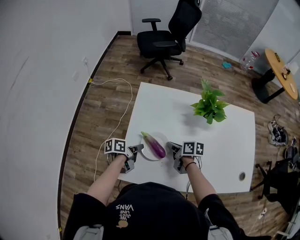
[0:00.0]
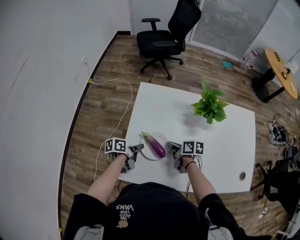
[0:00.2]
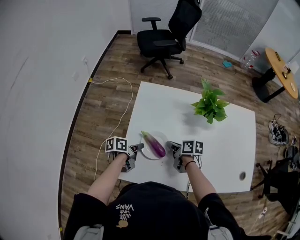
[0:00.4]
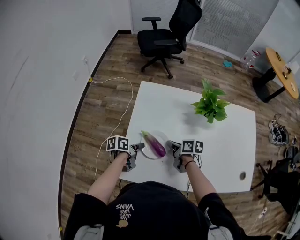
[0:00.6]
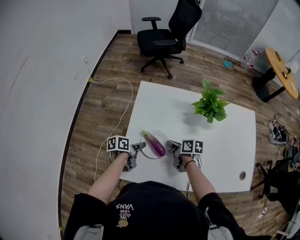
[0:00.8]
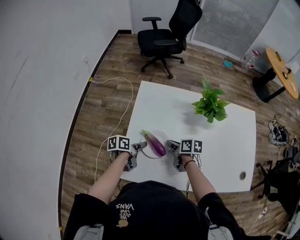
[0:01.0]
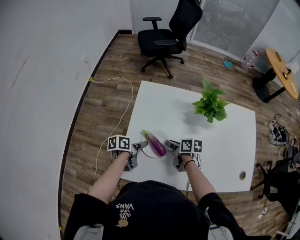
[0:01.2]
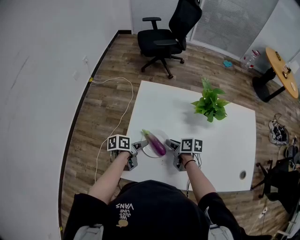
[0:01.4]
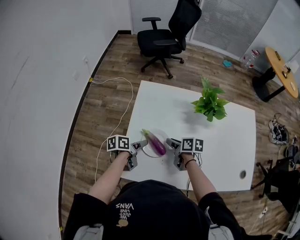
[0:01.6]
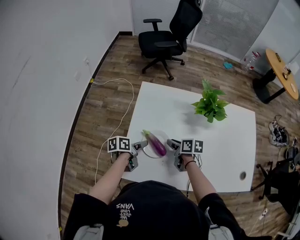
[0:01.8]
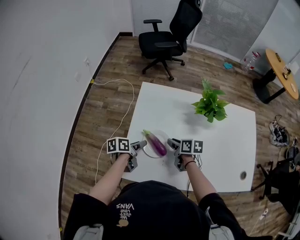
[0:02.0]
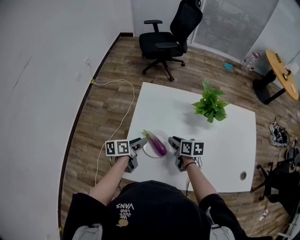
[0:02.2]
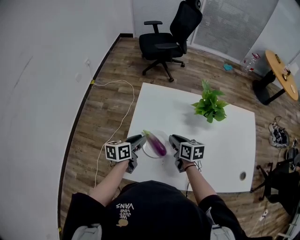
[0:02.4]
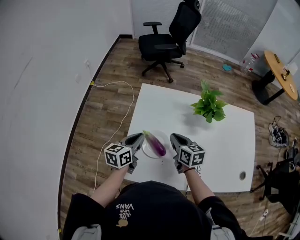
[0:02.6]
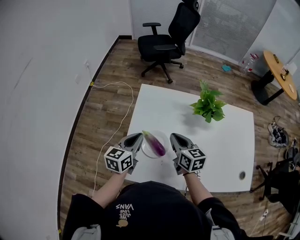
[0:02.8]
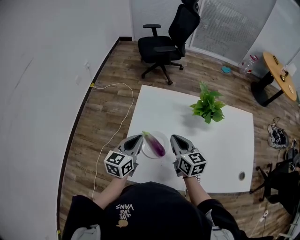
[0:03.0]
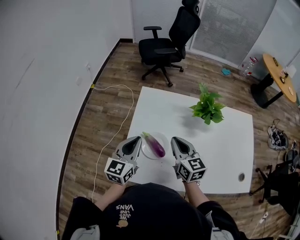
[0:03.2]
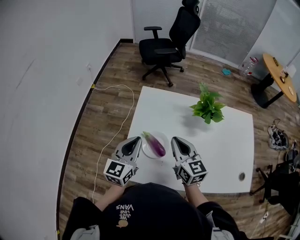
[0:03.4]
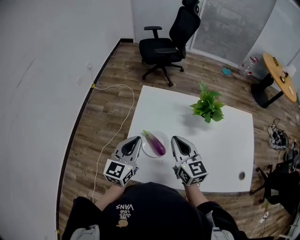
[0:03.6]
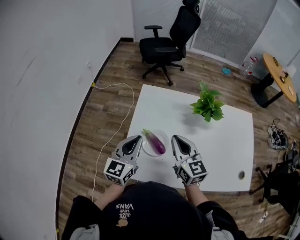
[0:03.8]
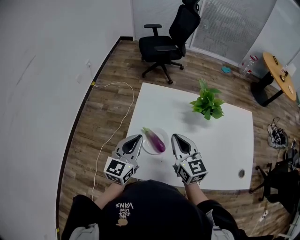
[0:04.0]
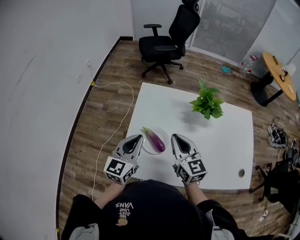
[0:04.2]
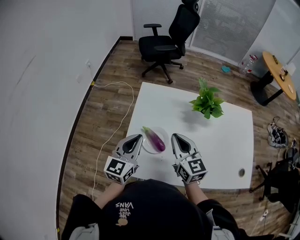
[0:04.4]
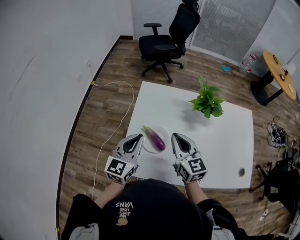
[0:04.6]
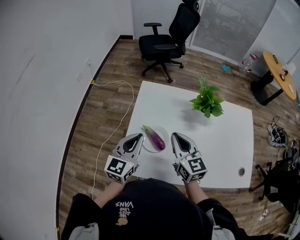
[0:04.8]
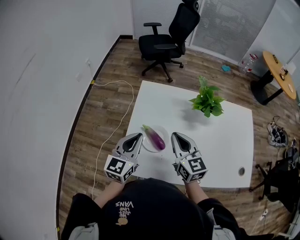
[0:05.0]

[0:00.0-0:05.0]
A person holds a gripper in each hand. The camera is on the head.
0:00.0 to 0:01.6: The left gripper opens its fingers.
0:01.6 to 0:03.4: Both grippers move upward, about 20 cm. The right gripper changes its angle by roughly 50 degrees, and closes. The left gripper twists about 60 degrees clockwise, seen from behind, and closes.
0:03.4 to 0:05.0: The grippers stay close to where they were, moving slightly.

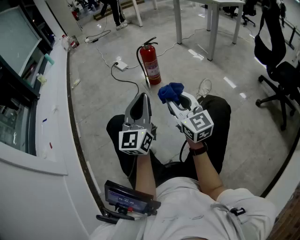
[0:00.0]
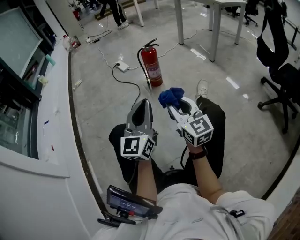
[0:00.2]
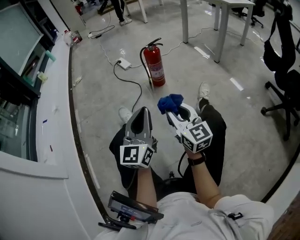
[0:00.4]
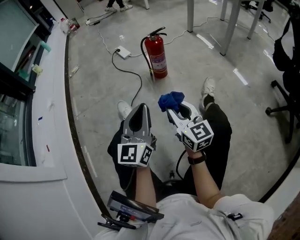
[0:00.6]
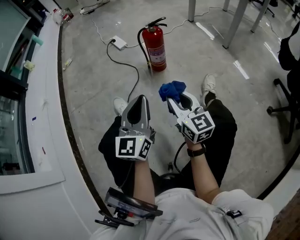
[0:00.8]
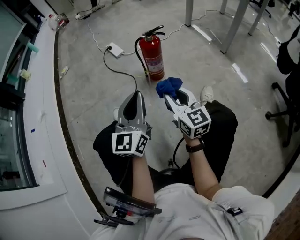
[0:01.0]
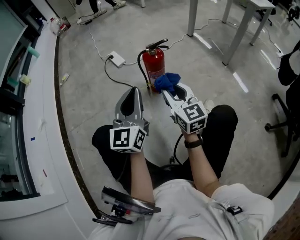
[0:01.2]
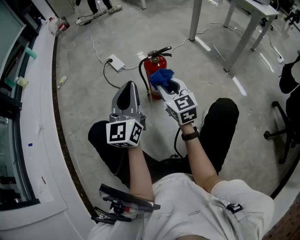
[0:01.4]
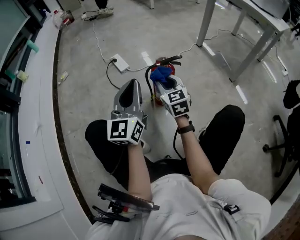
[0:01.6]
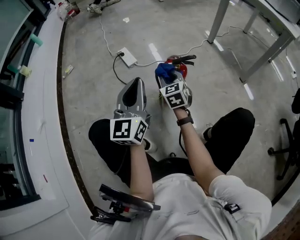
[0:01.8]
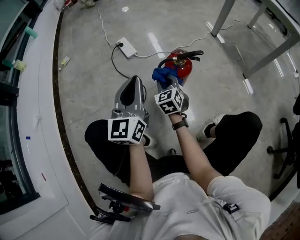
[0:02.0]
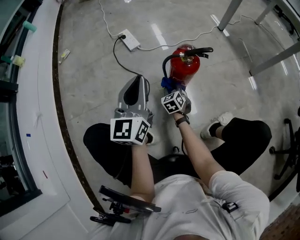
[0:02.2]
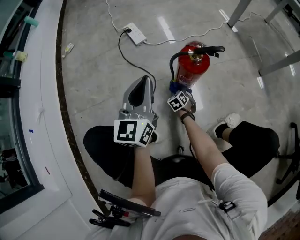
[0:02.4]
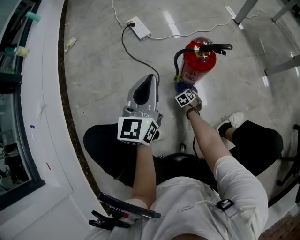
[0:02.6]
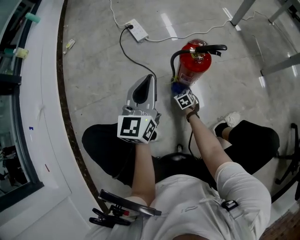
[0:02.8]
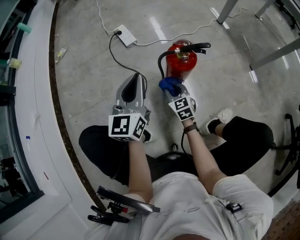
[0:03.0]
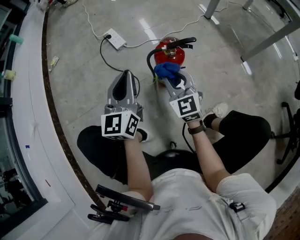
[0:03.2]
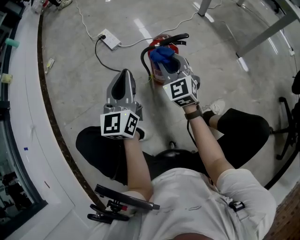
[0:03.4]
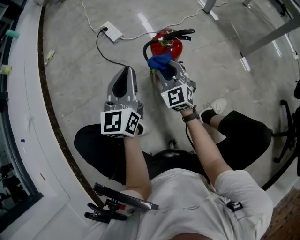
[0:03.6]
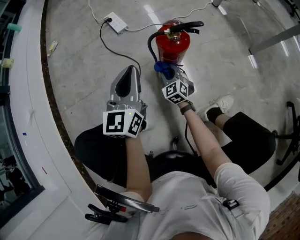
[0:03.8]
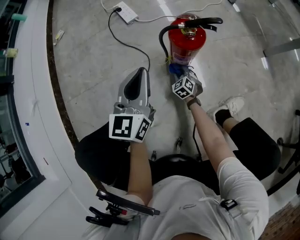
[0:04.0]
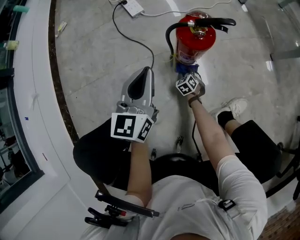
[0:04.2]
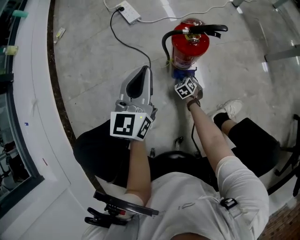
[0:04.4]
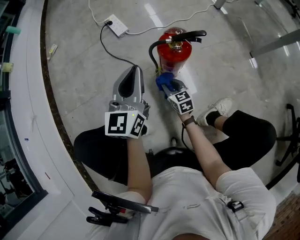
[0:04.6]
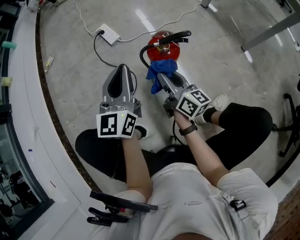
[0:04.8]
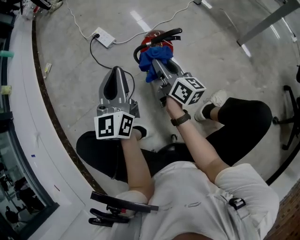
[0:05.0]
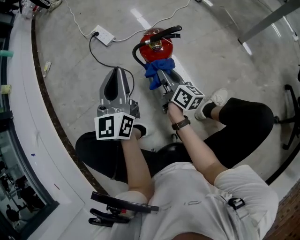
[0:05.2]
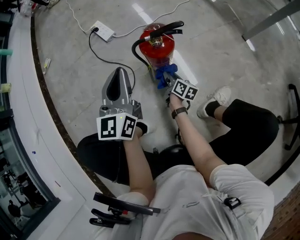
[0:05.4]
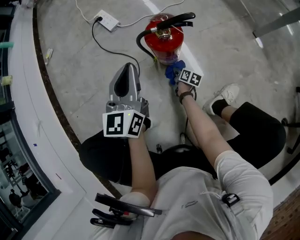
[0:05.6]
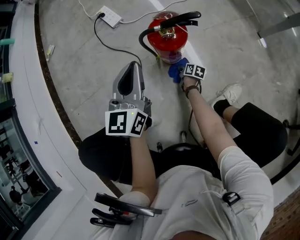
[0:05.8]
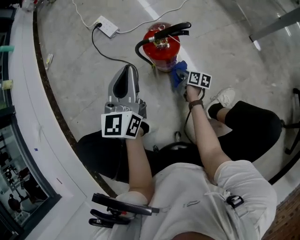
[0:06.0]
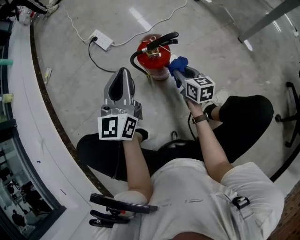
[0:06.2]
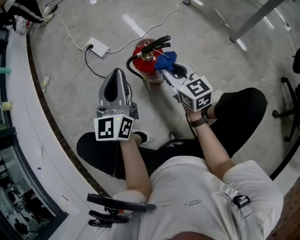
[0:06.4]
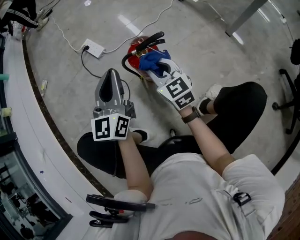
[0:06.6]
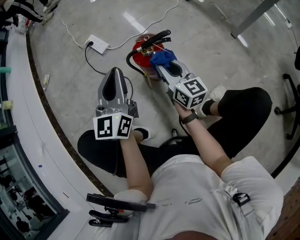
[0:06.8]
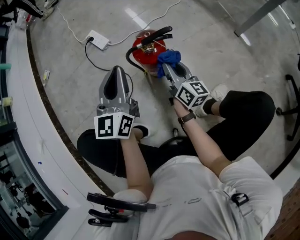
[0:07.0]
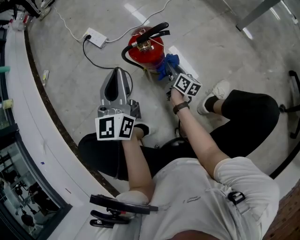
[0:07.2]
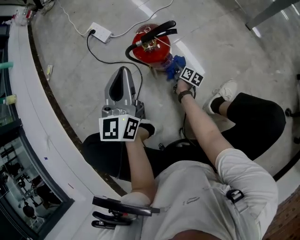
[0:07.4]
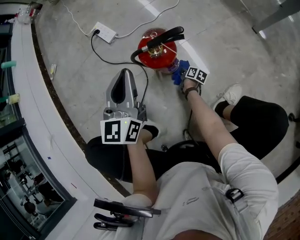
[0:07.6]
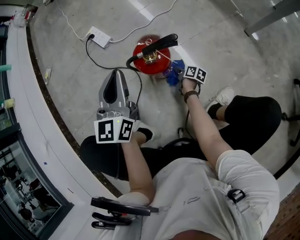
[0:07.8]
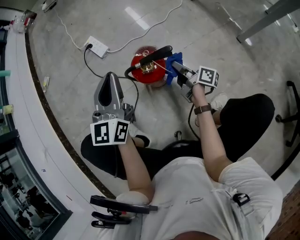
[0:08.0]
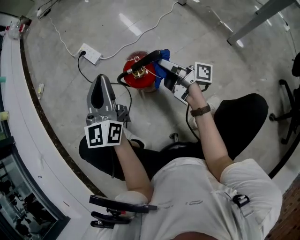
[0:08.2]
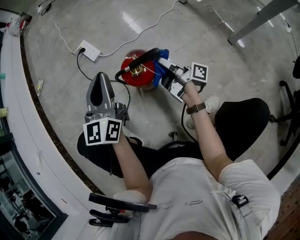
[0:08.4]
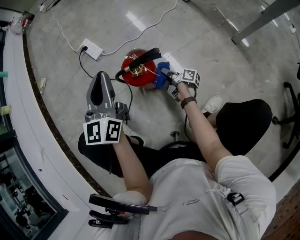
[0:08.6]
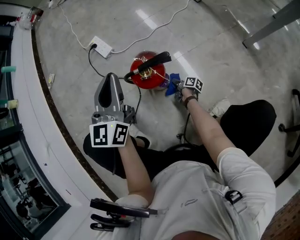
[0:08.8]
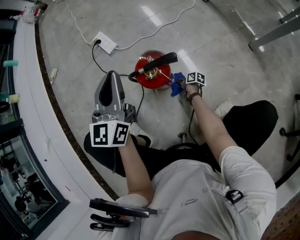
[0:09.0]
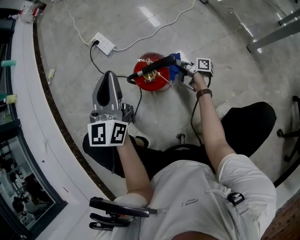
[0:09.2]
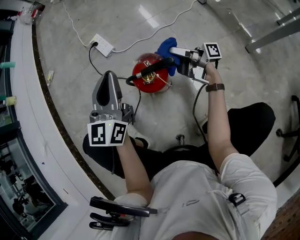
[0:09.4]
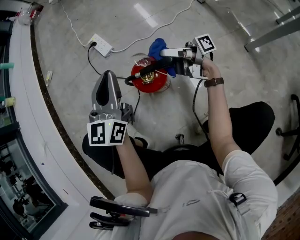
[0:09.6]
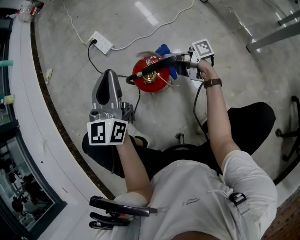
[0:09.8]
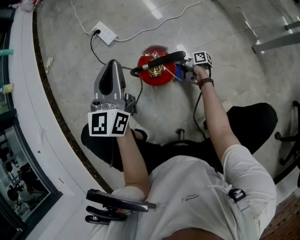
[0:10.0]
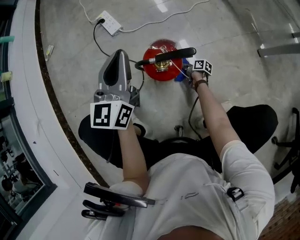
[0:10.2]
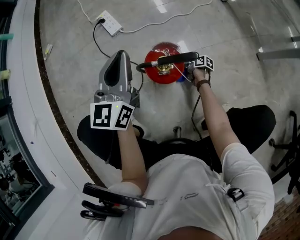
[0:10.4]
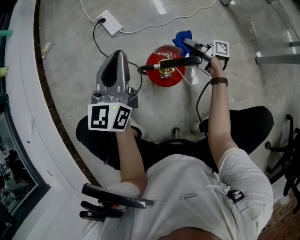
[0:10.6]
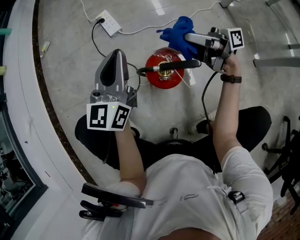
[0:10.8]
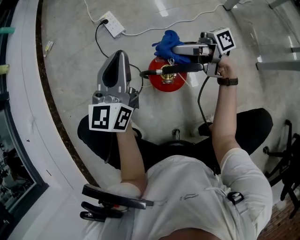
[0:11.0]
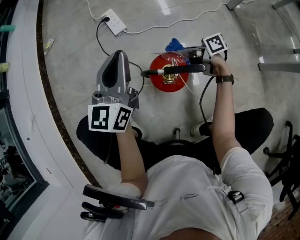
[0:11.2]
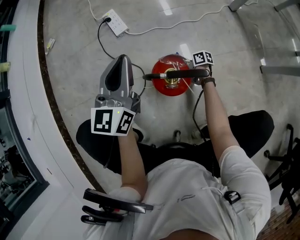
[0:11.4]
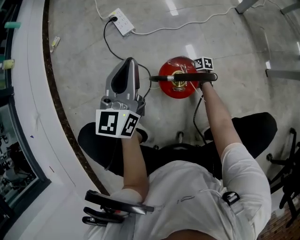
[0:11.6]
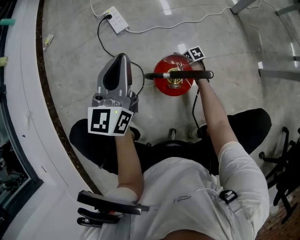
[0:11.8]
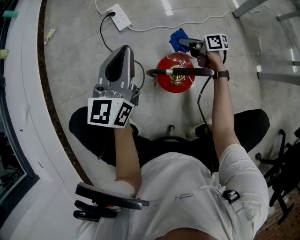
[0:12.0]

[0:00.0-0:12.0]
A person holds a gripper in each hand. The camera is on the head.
0:00.0 to 0:01.6: Both grippers are carried forward, approximately 50 cm. The right gripper changes its angle by approximately 20 degrees.
0:01.6 to 0:03.0: The right gripper goes roughly 20 cm downward. The left gripper is displaced downward and forward by about 15 cm.
0:03.0 to 0:04.4: The right gripper goes roughly 25 cm downward, and rotates roughly 30 degrees. Meanwhile the left gripper ends up approximately 5 cm from where it was.
0:04.4 to 0:06.0: The right gripper swings up and down, approximately 50 cm each way, with 2 reversals, and rolls clockwise, seen from behind, by about 70 degrees. The left gripper moves some 5 cm upward and comes back.
0:06.0 to 0:07.6: The right gripper moves roughly 30 cm upward and comes back, and changes its angle by some 20 degrees.
0:07.6 to 0:09.0: The left gripper moves upward, some 5 cm. Meanwhile the right gripper travels upward and back again, roughly 40 cm each way, and rotates approximately 20 degrees.
0:09.0 to 0:10.4: The right gripper heads forward, covering some 5 cm, and goes upward and returns, about 40 cm each way.
0:10.4 to 0:12.0: The right gripper goes up and down, about 50 cm each way, reversing 2 times, and changes its angle by some 40 degrees.

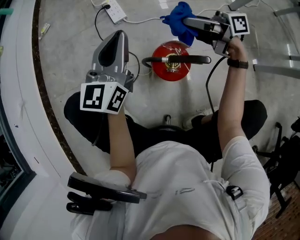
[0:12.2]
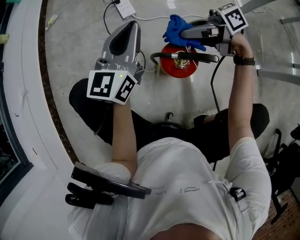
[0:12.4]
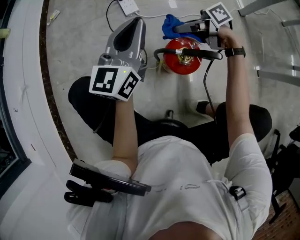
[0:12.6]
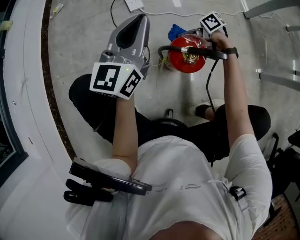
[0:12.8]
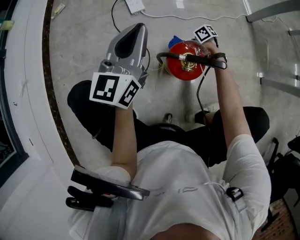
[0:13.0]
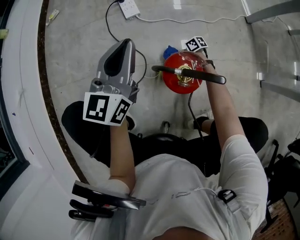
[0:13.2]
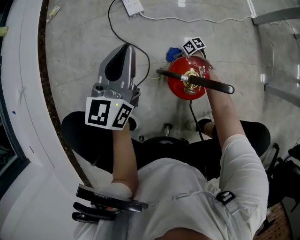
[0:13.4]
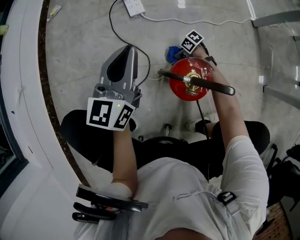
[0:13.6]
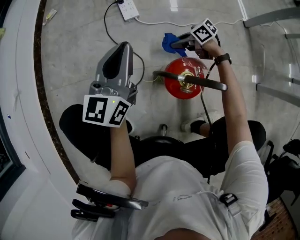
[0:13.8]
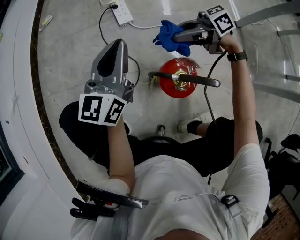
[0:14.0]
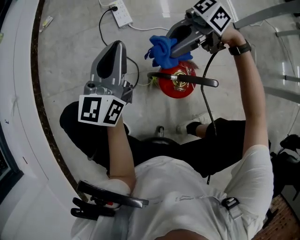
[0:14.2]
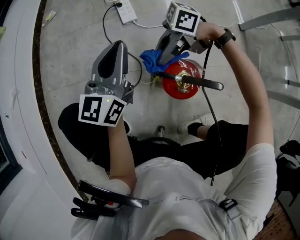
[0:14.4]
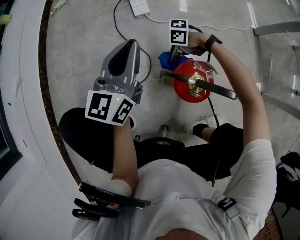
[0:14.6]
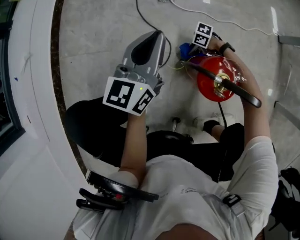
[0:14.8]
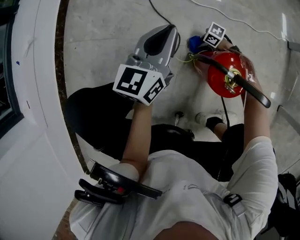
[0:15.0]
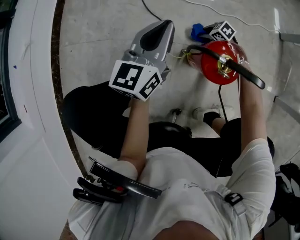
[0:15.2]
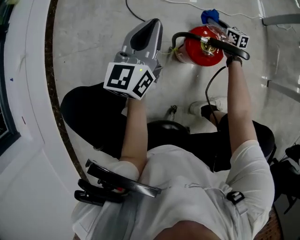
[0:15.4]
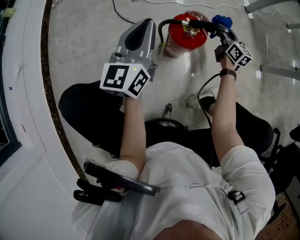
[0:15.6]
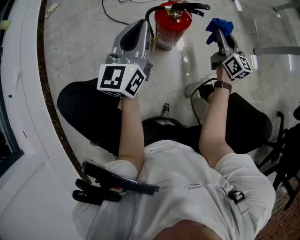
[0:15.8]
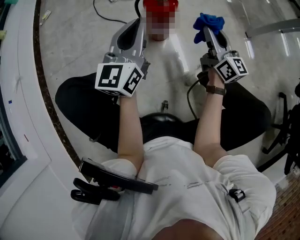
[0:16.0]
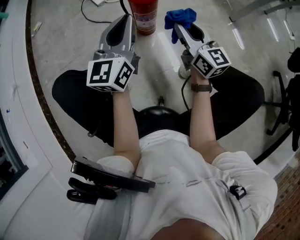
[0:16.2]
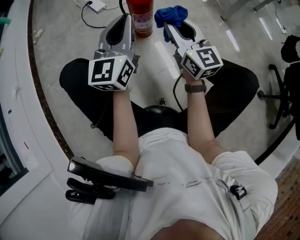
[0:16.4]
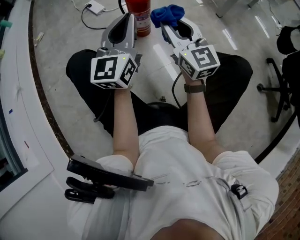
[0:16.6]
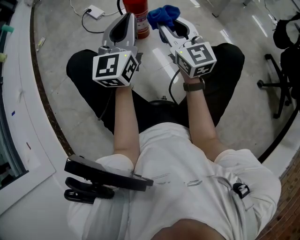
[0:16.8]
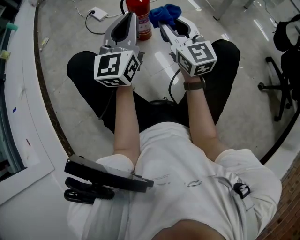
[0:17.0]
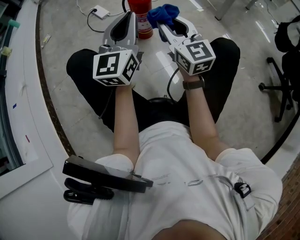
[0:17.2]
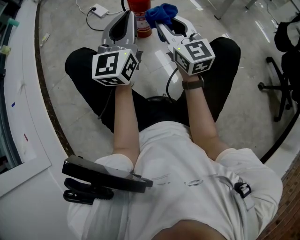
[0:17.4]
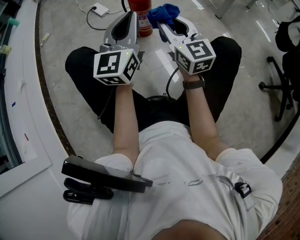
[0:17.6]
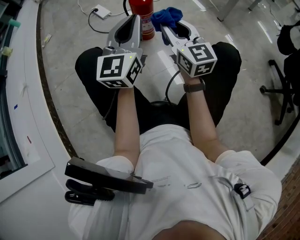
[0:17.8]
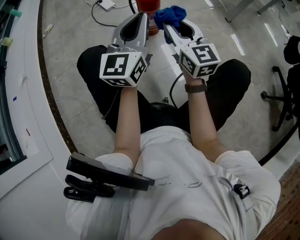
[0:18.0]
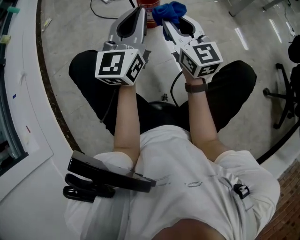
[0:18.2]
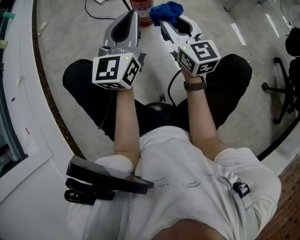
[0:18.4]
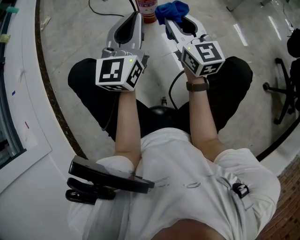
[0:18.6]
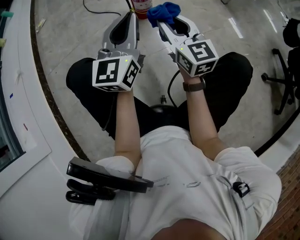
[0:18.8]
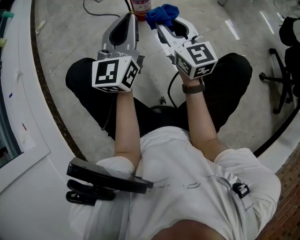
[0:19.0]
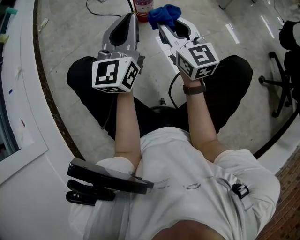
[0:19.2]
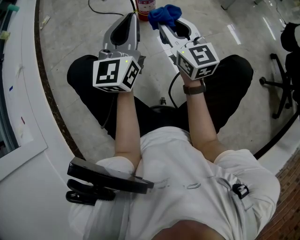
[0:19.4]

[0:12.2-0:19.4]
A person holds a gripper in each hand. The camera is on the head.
0:12.2 to 0:13.6: The right gripper moves downward, approximately 40 cm, and tilts its fingers approximately 50 degrees downward. The left gripper travels downward by roughly 5 cm.
0:13.6 to 0:15.0: The right gripper travels upward and back again, roughly 40 cm each way, and turns by some 30 degrees. Meanwhile the left gripper is displaced downward by roughly 5 cm.
0:15.0 to 0:16.6: The right gripper heads upward, covering about 60 cm, and angles its fingers upward, by approximately 50 degrees. The left gripper changes place by about 40 cm, and turns by roughly 40 degrees.
0:16.6 to 0:18.0: The grippers make only small movements.
0:18.0 to 0:19.4: The two grippers go approximately 10 cm backward.
